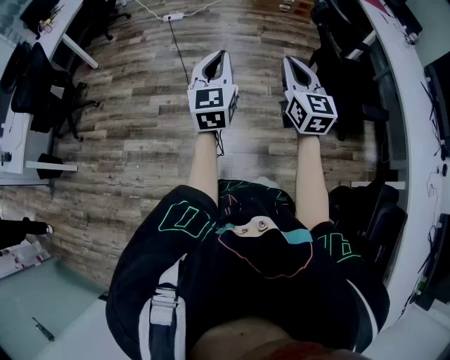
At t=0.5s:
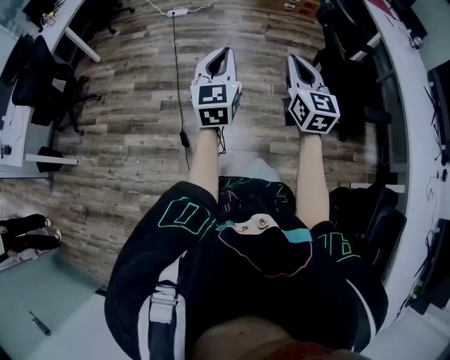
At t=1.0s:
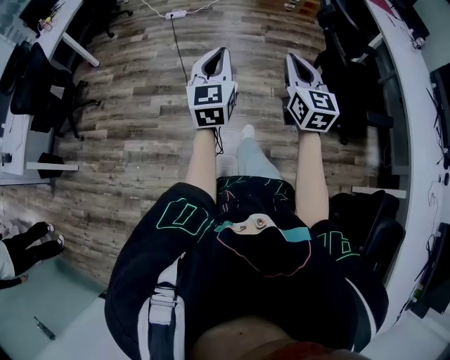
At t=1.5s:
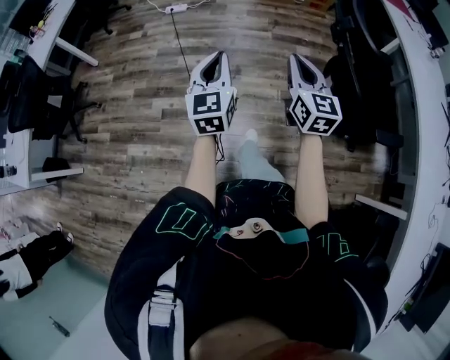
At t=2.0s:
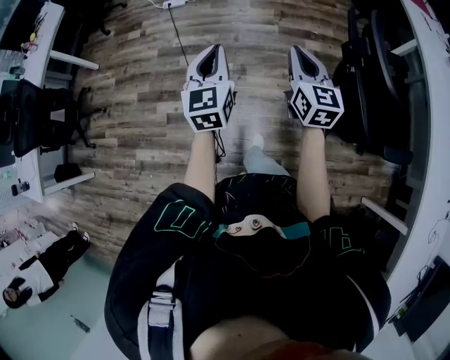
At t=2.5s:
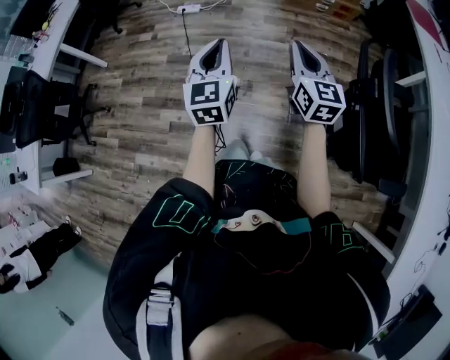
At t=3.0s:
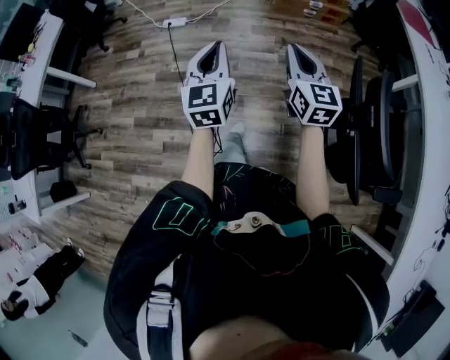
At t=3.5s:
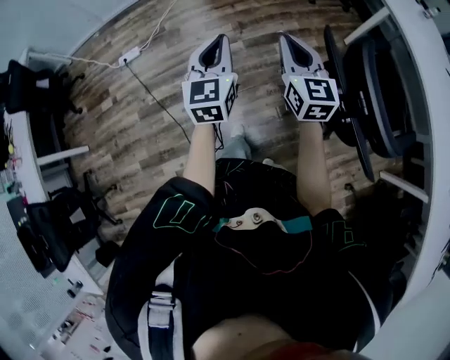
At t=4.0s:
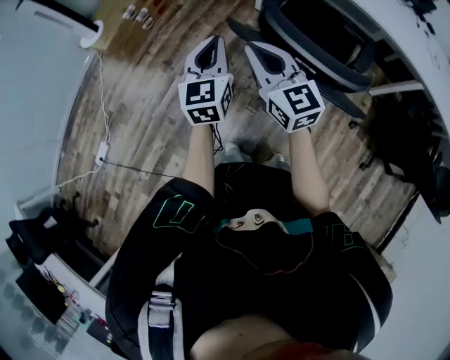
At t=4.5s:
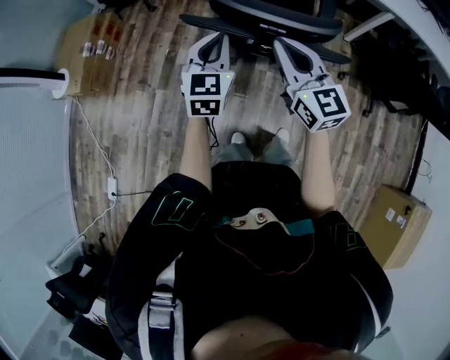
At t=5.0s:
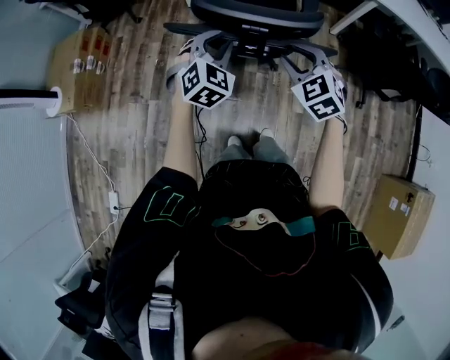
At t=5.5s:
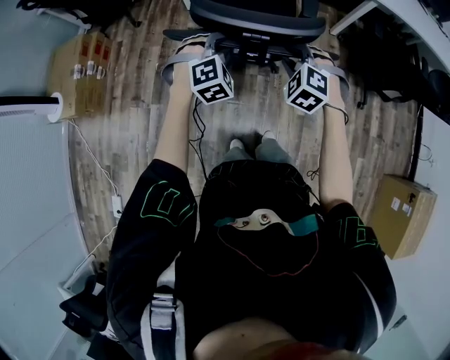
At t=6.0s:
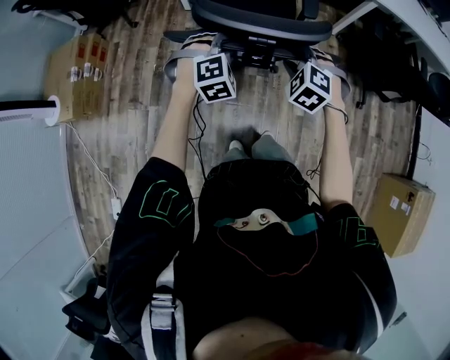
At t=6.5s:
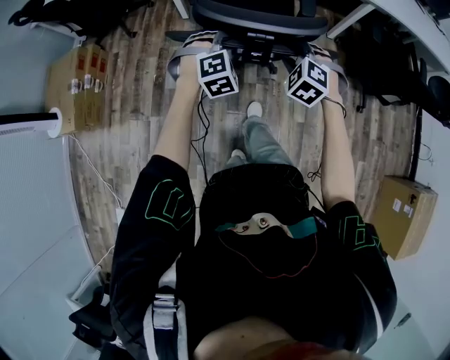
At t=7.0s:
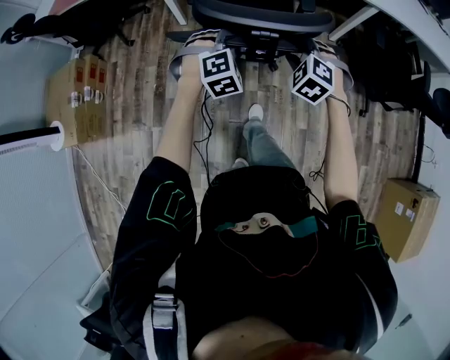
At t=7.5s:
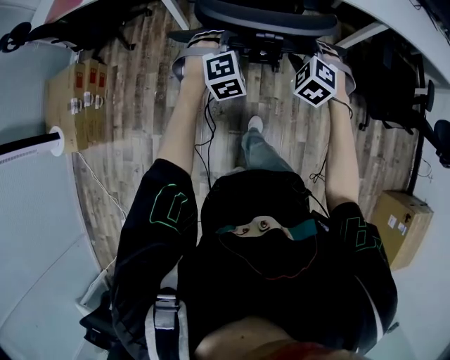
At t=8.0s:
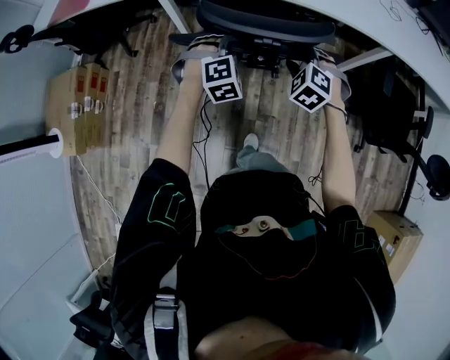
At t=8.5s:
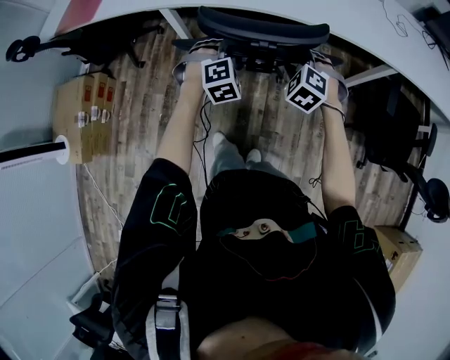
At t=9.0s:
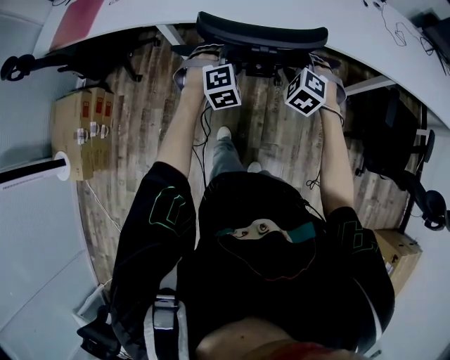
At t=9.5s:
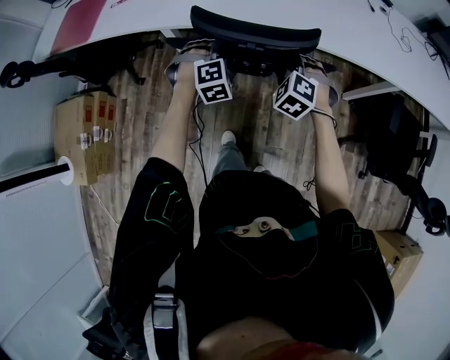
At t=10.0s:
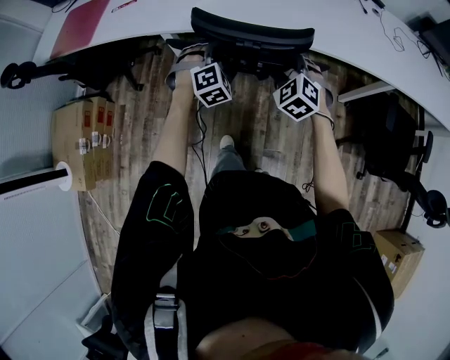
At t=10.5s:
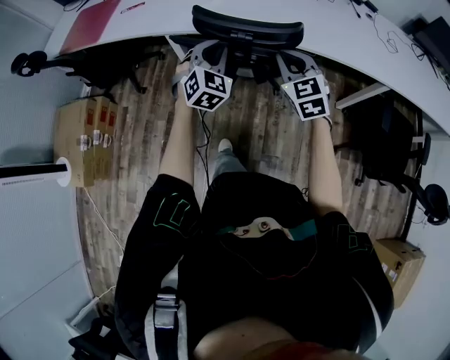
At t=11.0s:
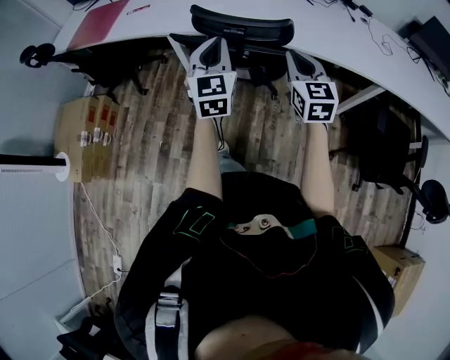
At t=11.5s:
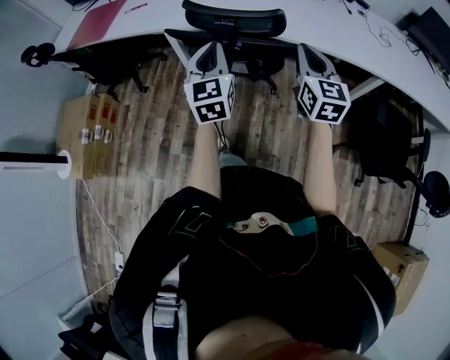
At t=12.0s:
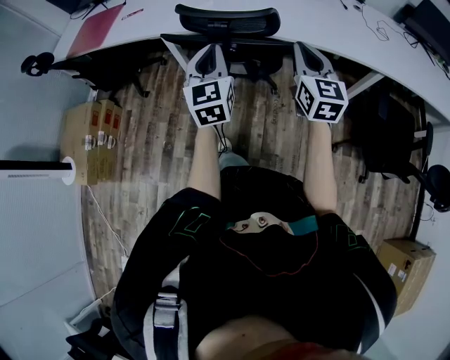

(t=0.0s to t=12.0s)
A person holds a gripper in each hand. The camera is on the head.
t=0.0s - t=2.0s: The two grippers go some 35 cm forward.
t=2.0s - t=4.0s: The left gripper moves some 40 cm, and swivels approximately 60 degrees, while the right gripper moves approximately 25 cm, and turns by some 40 degrees.
t=4.0s - t=6.0s: The right gripper ends up about 25 cm from where it was, tilts its fingers about 50 degrees downward, and opens. Meanwhile the left gripper shifts by about 25 cm, tips its fingers downward by about 40 degrees, and opens up.
t=6.0s - t=8.0s: Both grippers move forward, approximately 35 cm.
t=8.0s - t=10.0s: Both grippers travel together forward and to the left, some 20 cm.
t=10.0s - t=12.0s: The right gripper heads upward, backward and to the right, covering some 20 cm, tilts its fingers roughly 40 degrees upward, and closes up. Meanwhile the left gripper moves upward and backward, approximately 25 cm, twists roughly 60 degrees counterclockwise, seen from behind, and closes its fingers.

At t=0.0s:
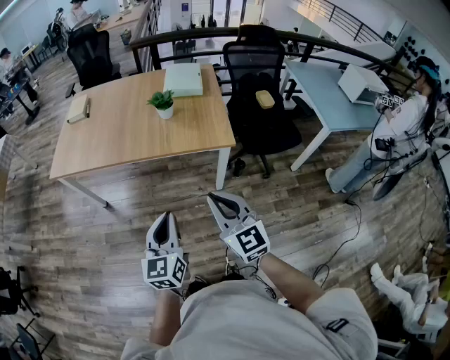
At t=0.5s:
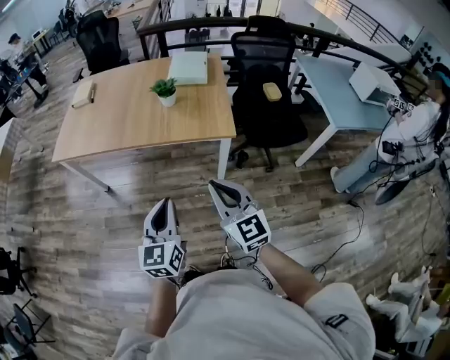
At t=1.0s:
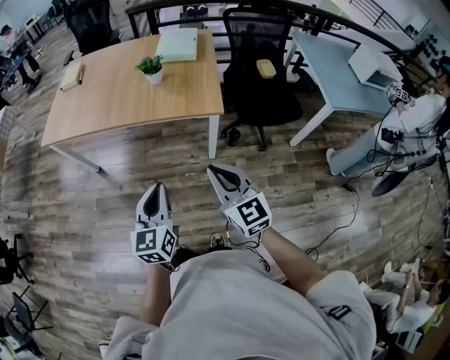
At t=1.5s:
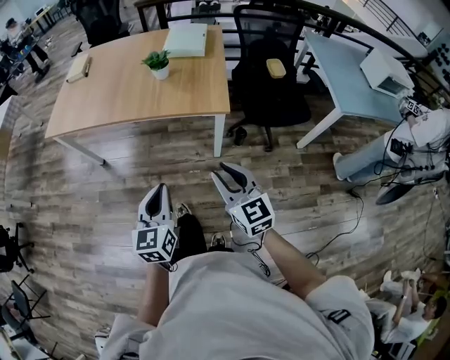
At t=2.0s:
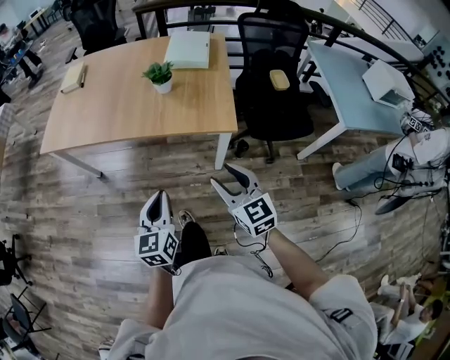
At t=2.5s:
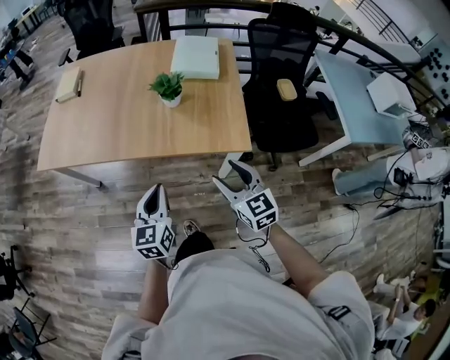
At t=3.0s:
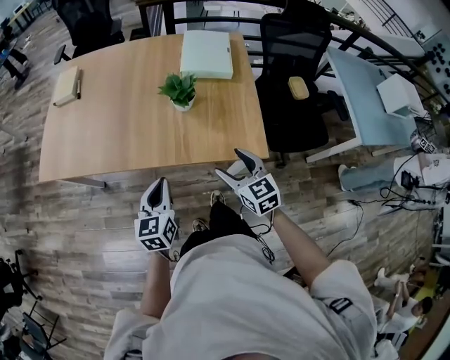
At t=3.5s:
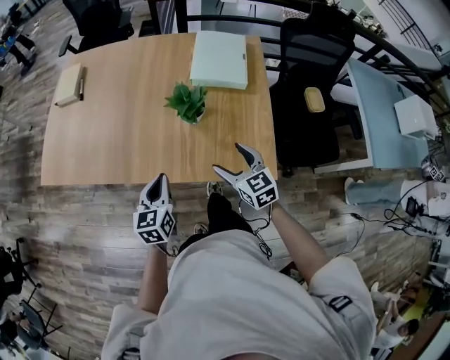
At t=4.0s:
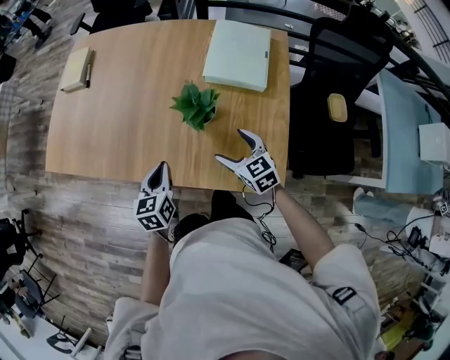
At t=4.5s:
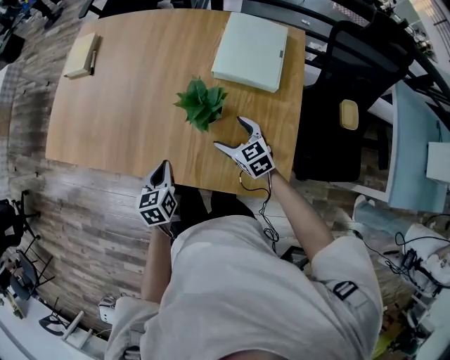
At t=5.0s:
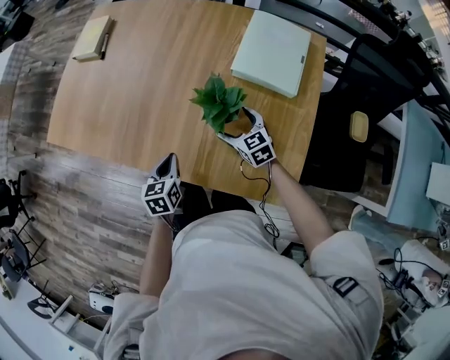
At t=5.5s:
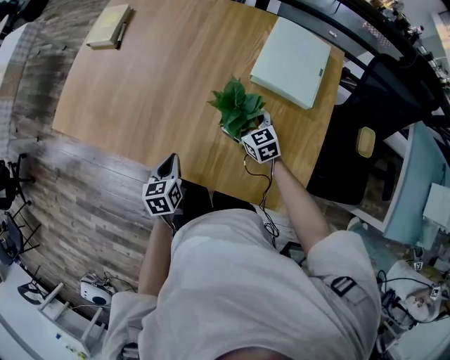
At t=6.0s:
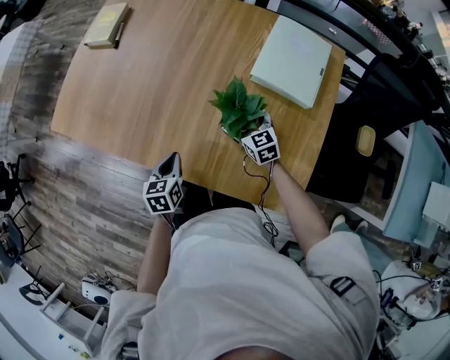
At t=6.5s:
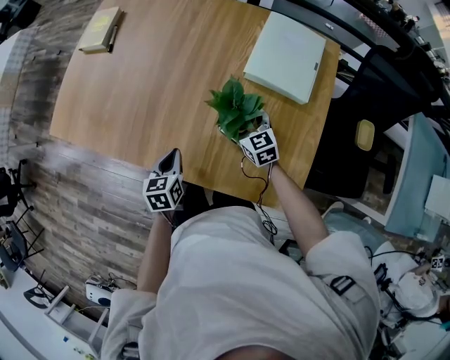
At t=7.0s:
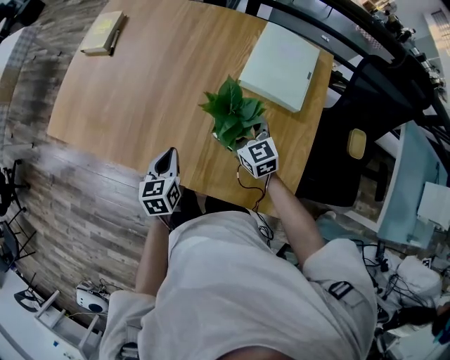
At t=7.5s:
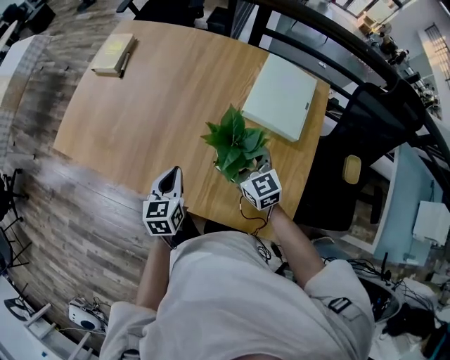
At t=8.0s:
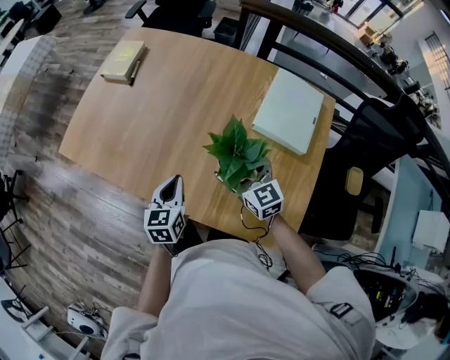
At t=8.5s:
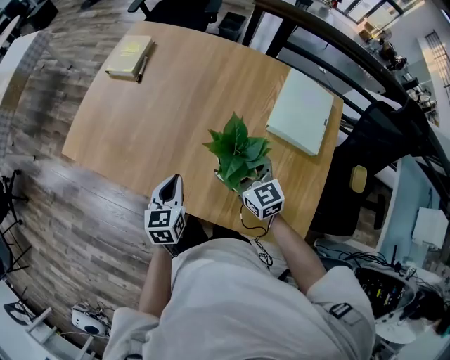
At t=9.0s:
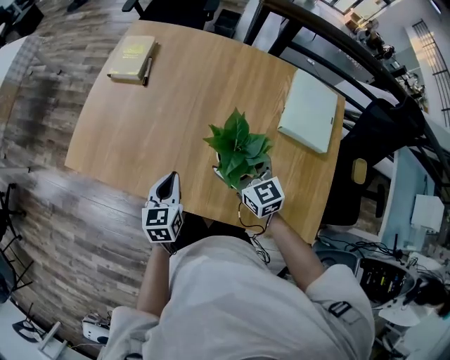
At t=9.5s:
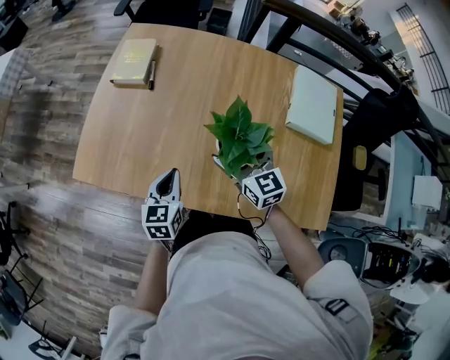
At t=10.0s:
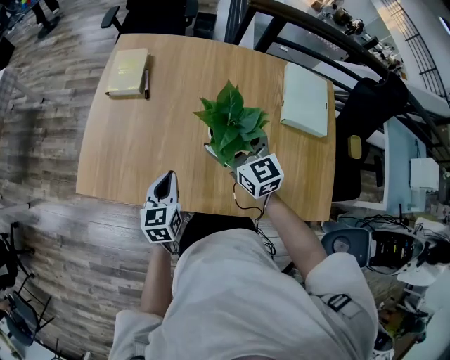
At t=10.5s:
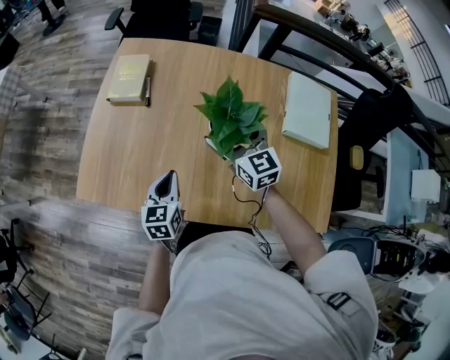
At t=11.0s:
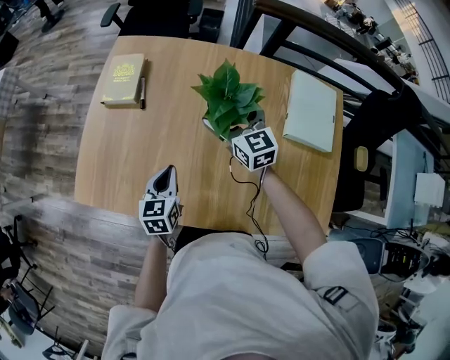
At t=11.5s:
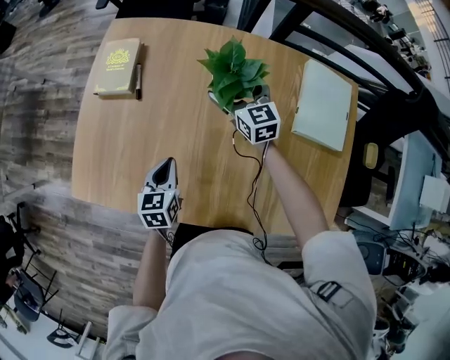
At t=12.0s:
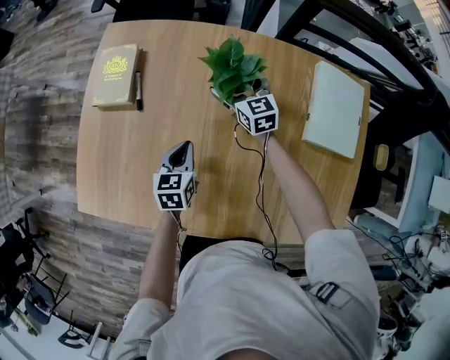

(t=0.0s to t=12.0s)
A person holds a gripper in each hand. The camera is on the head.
t=0.0s - t=2.0s: The left gripper travels forward, downward and to the right by approximately 15 cm; the right gripper travels to the right, forward and downward by approximately 15 cm, and opens up.
t=2.0s - t=4.0s: Both grippers are carried forward, about 40 cm. The right gripper swivels about 20 degrees, and opens up.
t=4.0s - t=6.0s: The right gripper is displaced forward and downward by approximately 20 cm; the left gripper heads downward and to the left, covering some 10 cm.
t=6.0s - t=8.0s: The right gripper travels upward by approximately 15 cm. Meanwhile the left gripper moves upward and forward, some 10 cm.
t=8.0s - t=10.0s: The grippers both shift to the left and forward by approximately 25 cm.
t=10.0s - t=12.0s: The right gripper travels forward and downward by approximately 30 cm. The left gripper is displaced forward, downward and to the right by about 20 cm.

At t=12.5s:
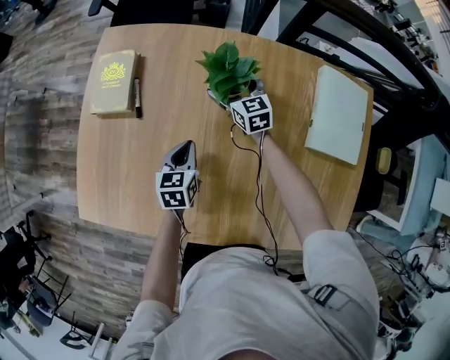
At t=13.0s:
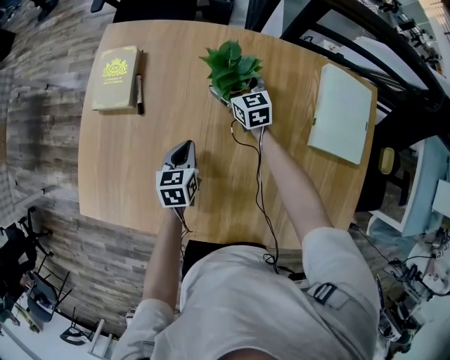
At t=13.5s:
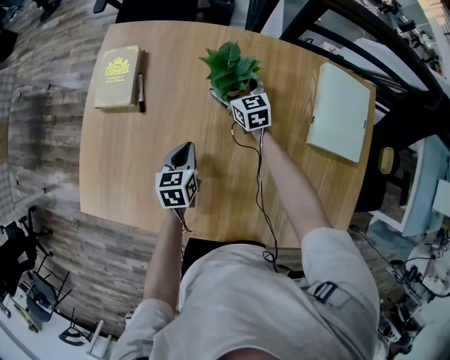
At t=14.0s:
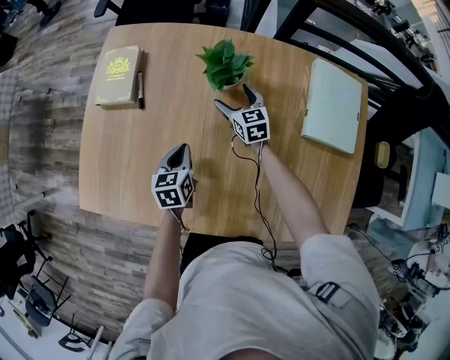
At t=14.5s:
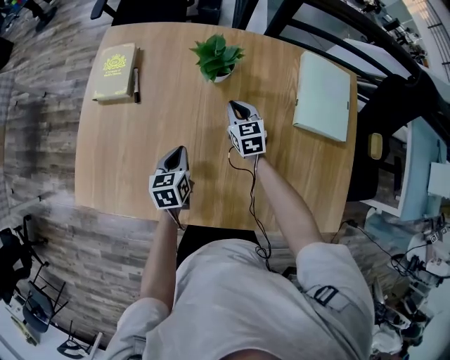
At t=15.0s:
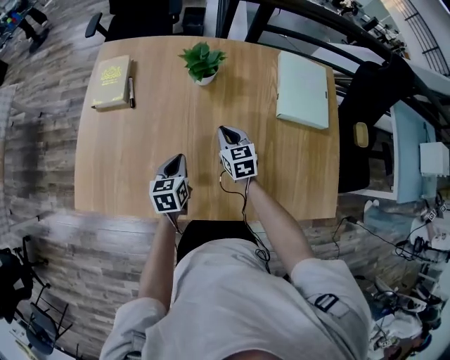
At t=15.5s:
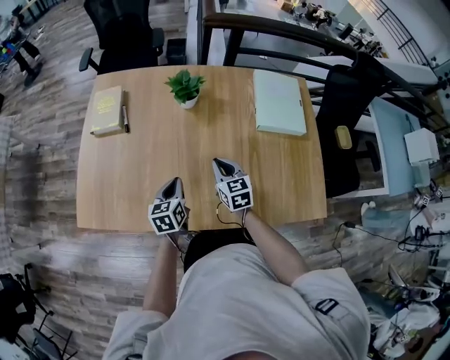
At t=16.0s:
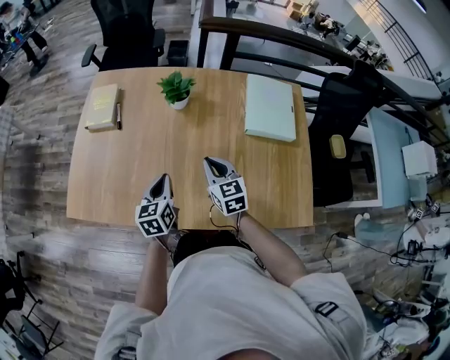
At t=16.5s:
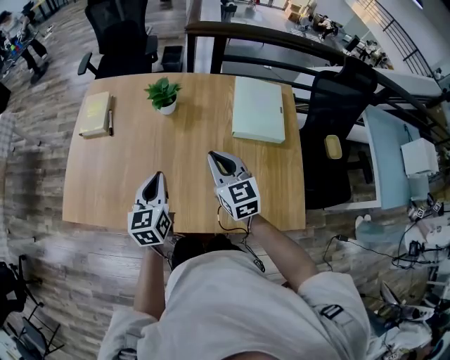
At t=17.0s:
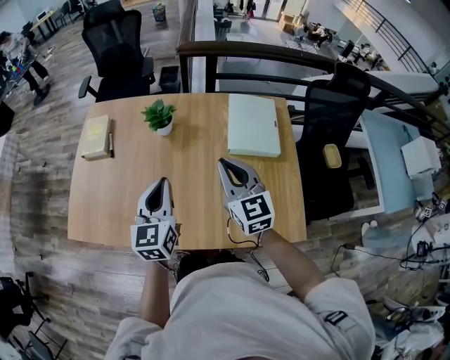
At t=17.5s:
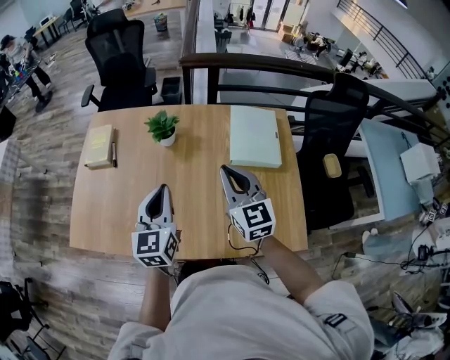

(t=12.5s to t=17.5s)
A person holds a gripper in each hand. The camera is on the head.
t=12.5s - t=15.0s: The right gripper goes some 25 cm backward, and closes. Meanwhile the left gripper heads backward, covering some 15 cm.
t=15.0s - t=17.5s: Both grippers travel together upward and to the right, some 30 cm. The left gripper swivels about 30 degrees; the right gripper turns by roughly 30 degrees.
